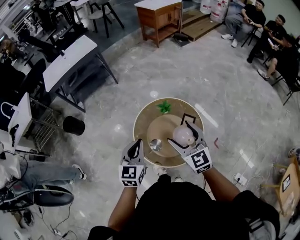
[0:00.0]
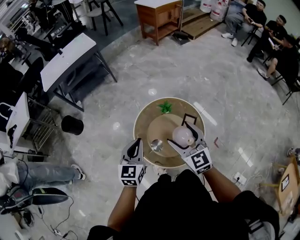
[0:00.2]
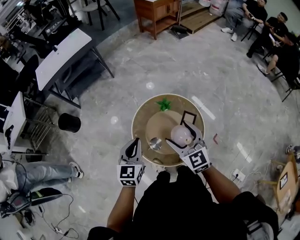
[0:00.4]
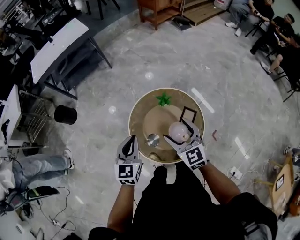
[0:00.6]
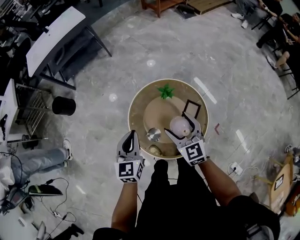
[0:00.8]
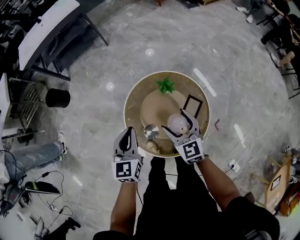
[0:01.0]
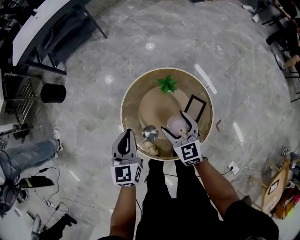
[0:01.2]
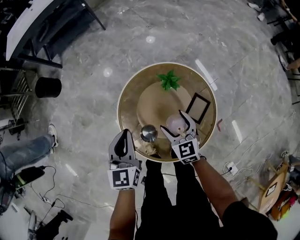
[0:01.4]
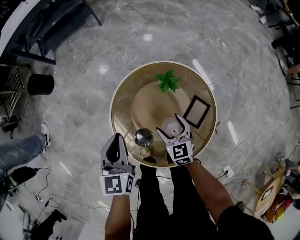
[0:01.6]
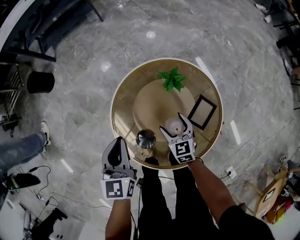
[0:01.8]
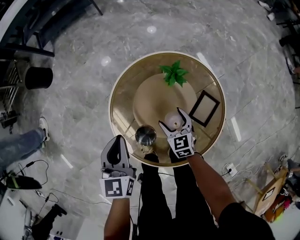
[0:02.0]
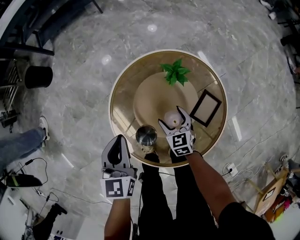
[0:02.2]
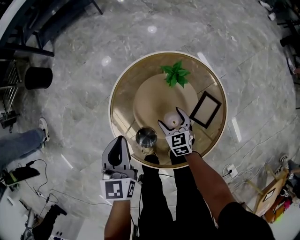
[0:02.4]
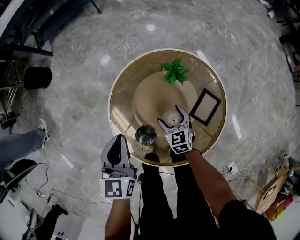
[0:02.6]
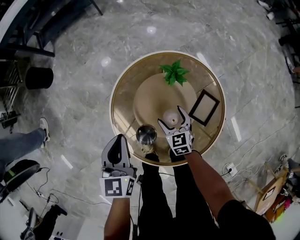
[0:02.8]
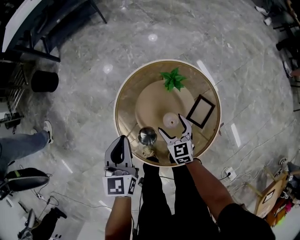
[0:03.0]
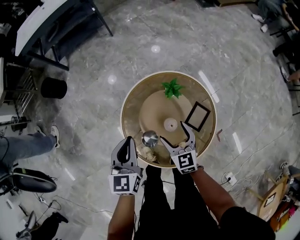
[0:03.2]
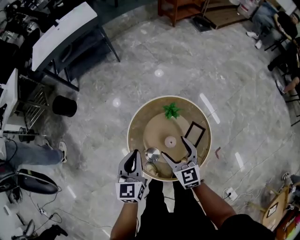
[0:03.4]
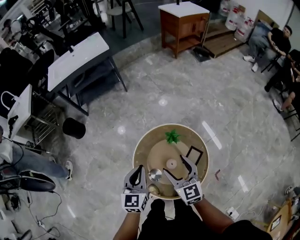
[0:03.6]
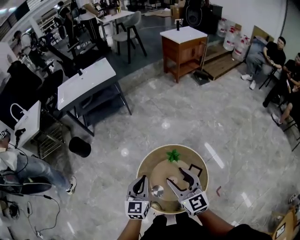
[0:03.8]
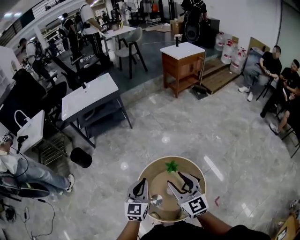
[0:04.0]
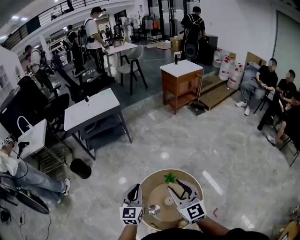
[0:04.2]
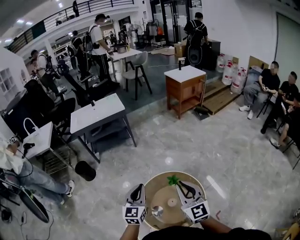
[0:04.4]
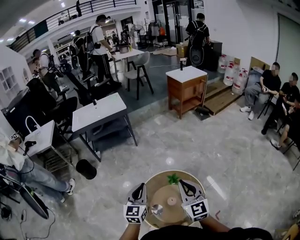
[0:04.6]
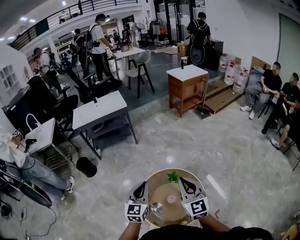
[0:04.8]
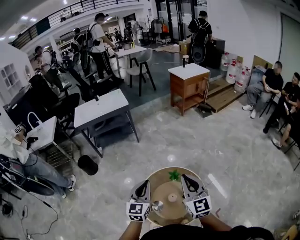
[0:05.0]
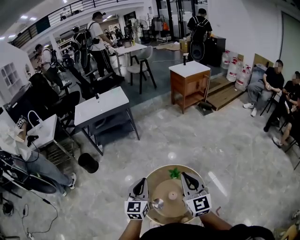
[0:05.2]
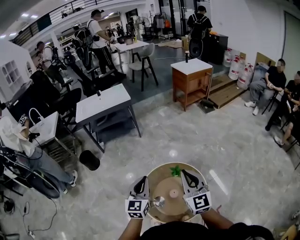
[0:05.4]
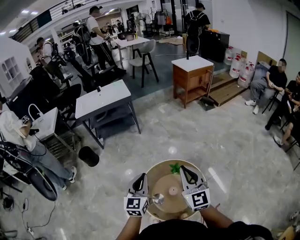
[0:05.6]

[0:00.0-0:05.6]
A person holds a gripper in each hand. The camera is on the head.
0:00.0 to 0:01.4: The left gripper goes some 20 cm downward and forward. The right gripper is displaced downward by roughly 35 cm, and swivels about 20 degrees.
0:01.4 to 0:02.8: The right gripper is displaced downward by some 15 cm; the left gripper shifts approximately 5 cm downward.
0:02.8 to 0:04.2: The left gripper shifts roughly 30 cm upward, and turns by some 20 degrees; the right gripper moves upward, roughly 60 cm, tilts its fingers about 40 degrees upward, and closes its fingers.
0:04.2 to 0:05.6: The right gripper closes.

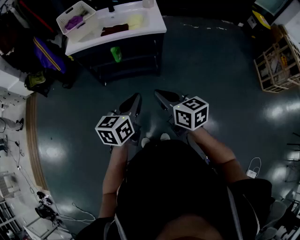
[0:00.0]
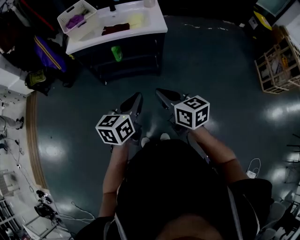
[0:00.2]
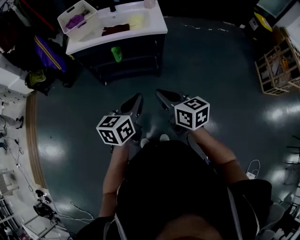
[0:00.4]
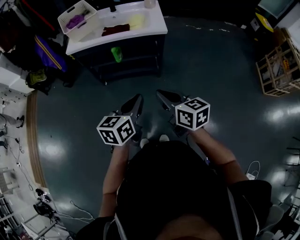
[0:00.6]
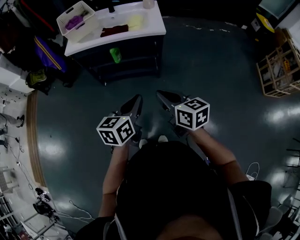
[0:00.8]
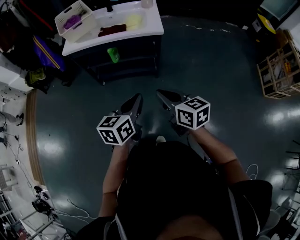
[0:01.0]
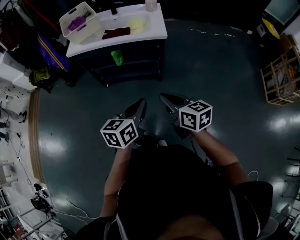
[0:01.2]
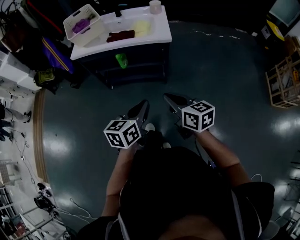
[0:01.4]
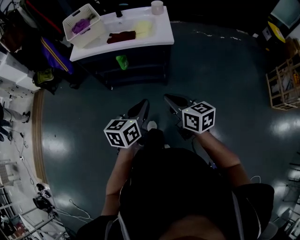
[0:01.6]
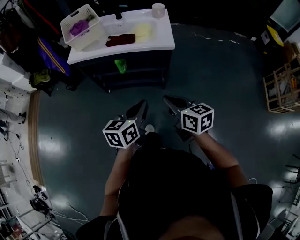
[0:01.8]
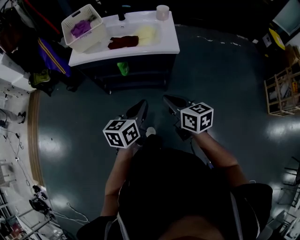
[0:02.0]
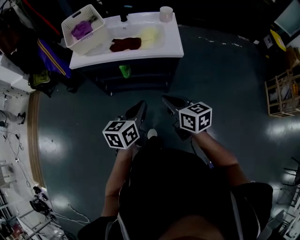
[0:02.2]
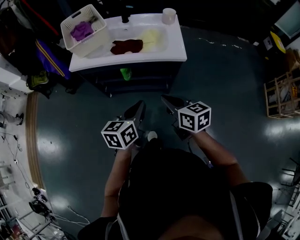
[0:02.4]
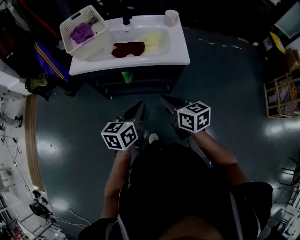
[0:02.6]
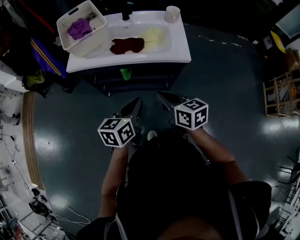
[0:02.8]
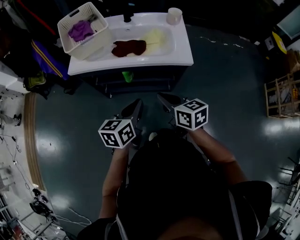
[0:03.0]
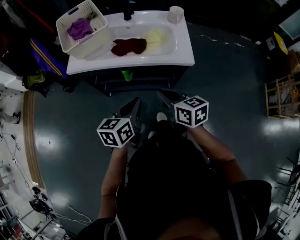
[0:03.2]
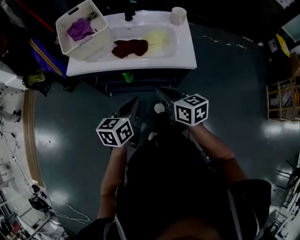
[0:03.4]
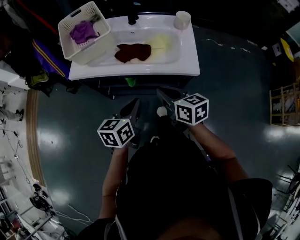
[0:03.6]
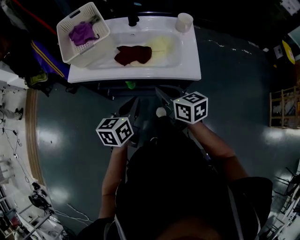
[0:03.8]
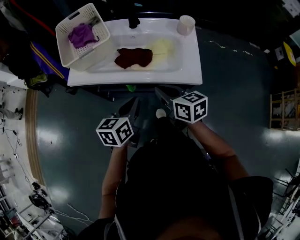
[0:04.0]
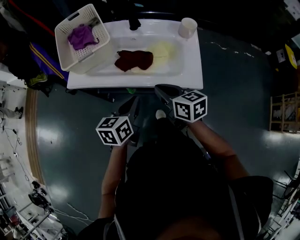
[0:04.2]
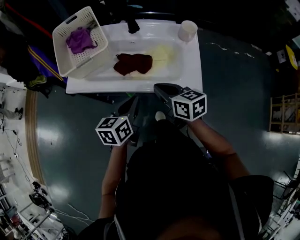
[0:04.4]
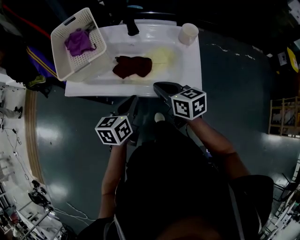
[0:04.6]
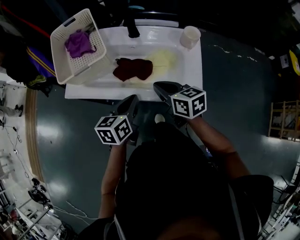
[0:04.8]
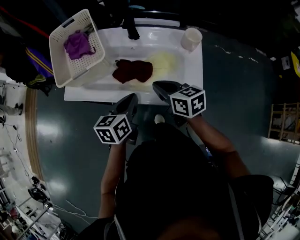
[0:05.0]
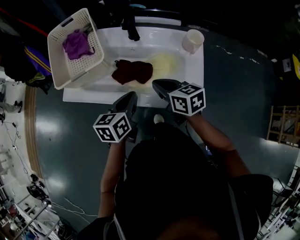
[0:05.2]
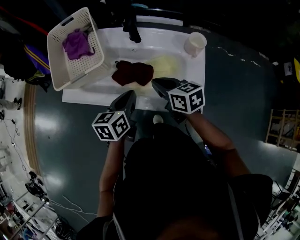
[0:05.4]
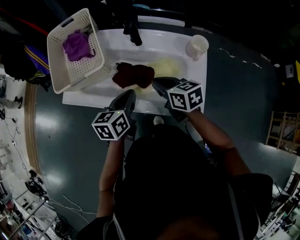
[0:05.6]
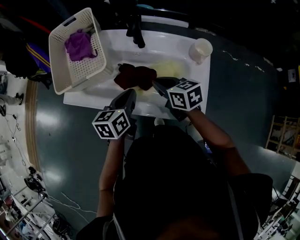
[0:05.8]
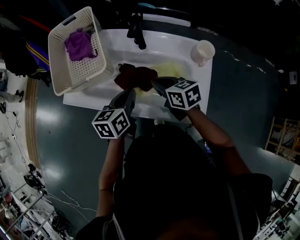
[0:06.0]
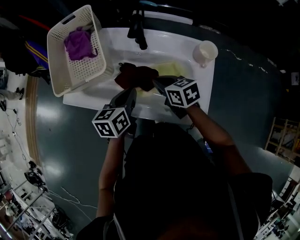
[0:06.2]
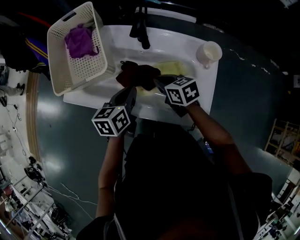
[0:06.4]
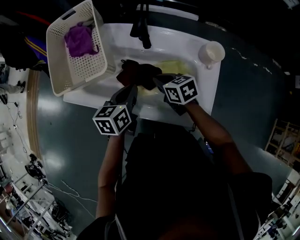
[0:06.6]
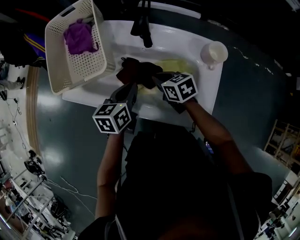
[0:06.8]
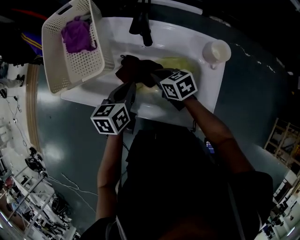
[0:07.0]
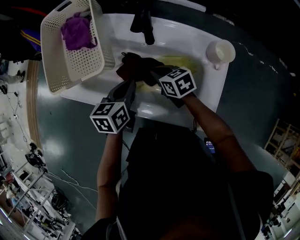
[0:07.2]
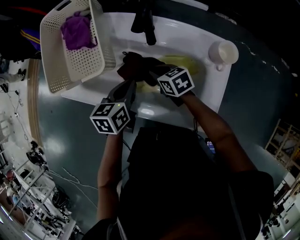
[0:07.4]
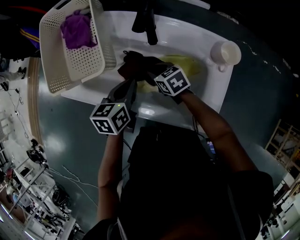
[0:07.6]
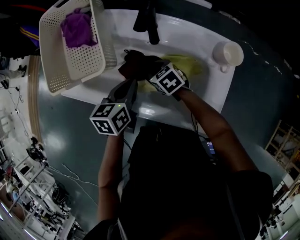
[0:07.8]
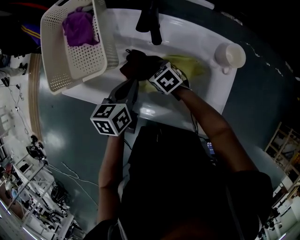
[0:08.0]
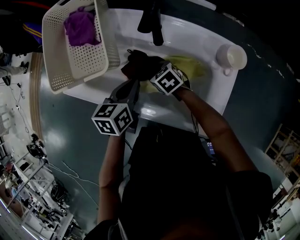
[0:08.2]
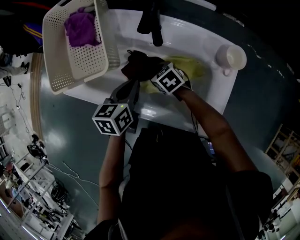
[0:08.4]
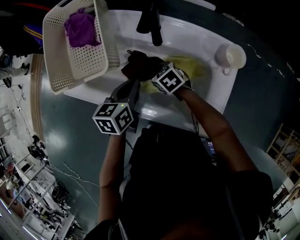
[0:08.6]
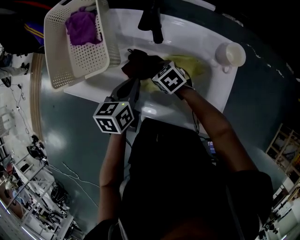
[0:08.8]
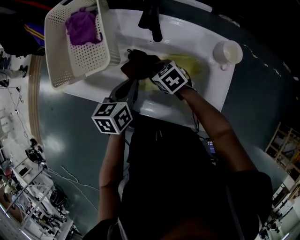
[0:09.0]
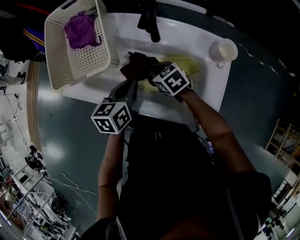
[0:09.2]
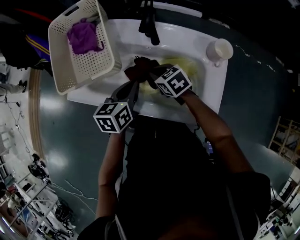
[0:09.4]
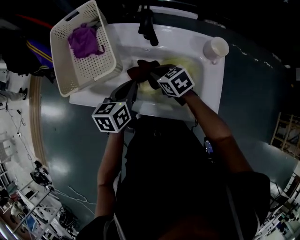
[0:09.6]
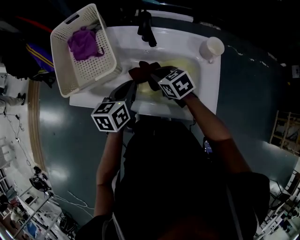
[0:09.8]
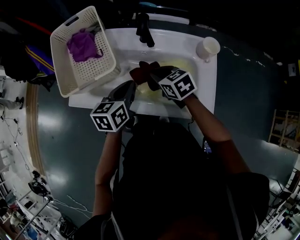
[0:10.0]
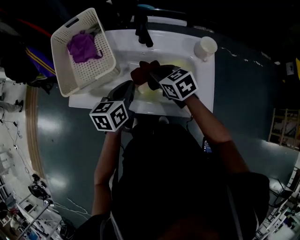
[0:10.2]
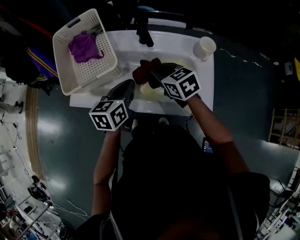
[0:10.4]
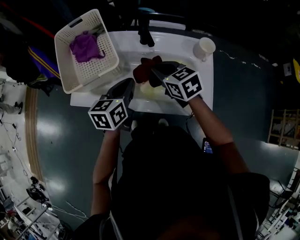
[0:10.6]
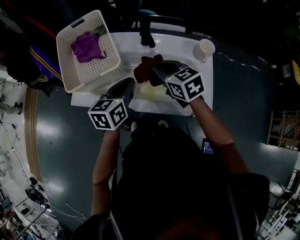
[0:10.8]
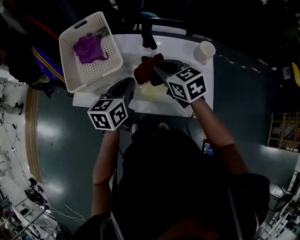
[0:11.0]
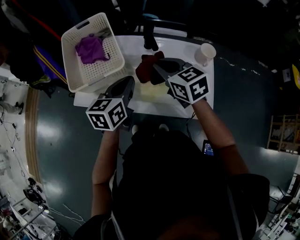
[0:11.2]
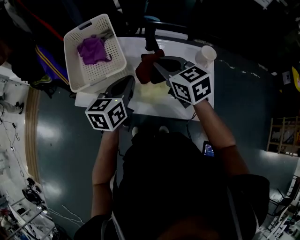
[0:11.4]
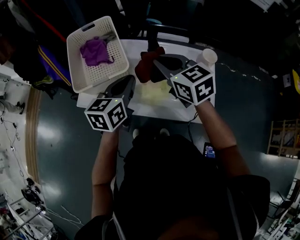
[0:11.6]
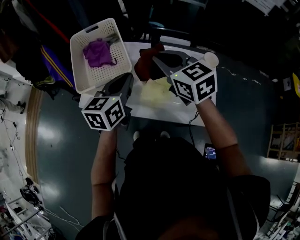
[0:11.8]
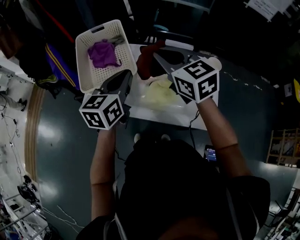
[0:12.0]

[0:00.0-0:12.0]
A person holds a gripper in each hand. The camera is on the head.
0:00.0 to 0:01.6: The grippers both shift forward and to the right by roughly 10 cm.
0:01.6 to 0:03.0: Both grippers move forward and to the left, approximately 20 cm.
0:03.0 to 0:04.4: The grippers both shift forward by some 20 cm.
0:04.4 to 0:06.0: The grippers both shift forward by roughly 15 cm.
0:06.0 to 0:07.6: The right gripper is displaced downward and forward by approximately 15 cm, and opens its fingers; the left gripper changes place by some 5 cm.
0:07.6 to 0:09.0: The right gripper closes.
0:09.0 to 0:10.4: The right gripper heads upward, covering about 15 cm, and swivels some 20 degrees, while the left gripper travels upward by about 5 cm.
0:10.4 to 0:12.0: The left gripper goes roughly 15 cm upward and to the left. Meanwhile the right gripper moves upward, about 20 cm, and changes its angle by approximately 20 degrees.

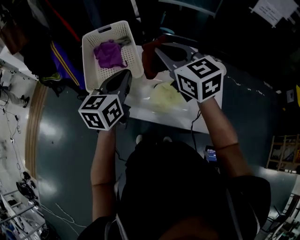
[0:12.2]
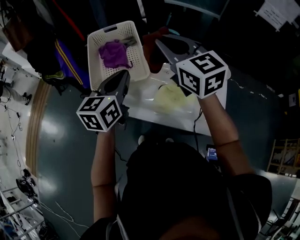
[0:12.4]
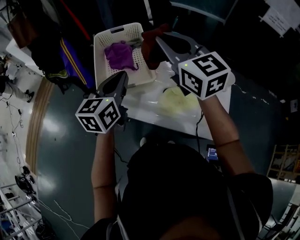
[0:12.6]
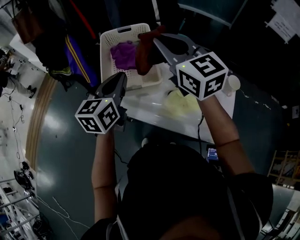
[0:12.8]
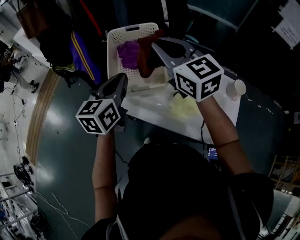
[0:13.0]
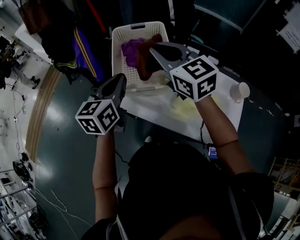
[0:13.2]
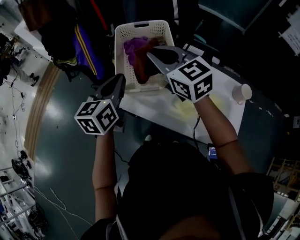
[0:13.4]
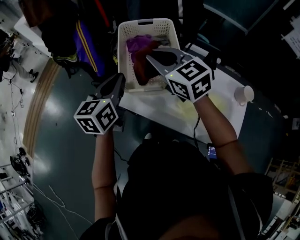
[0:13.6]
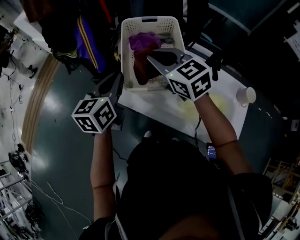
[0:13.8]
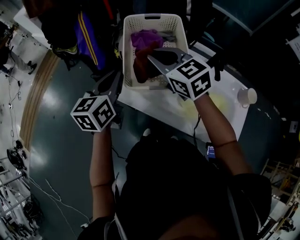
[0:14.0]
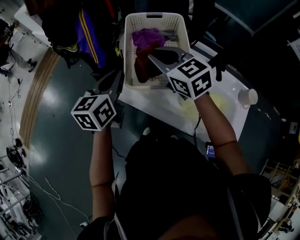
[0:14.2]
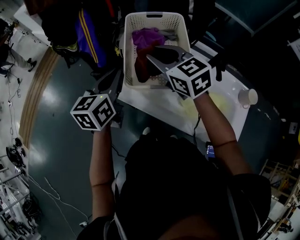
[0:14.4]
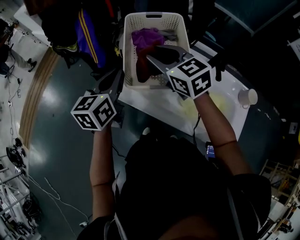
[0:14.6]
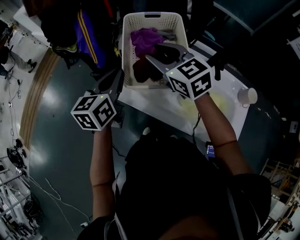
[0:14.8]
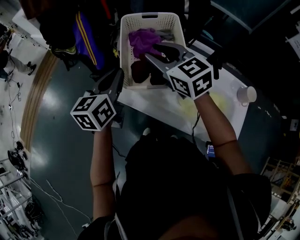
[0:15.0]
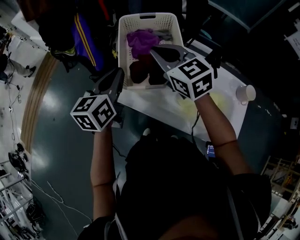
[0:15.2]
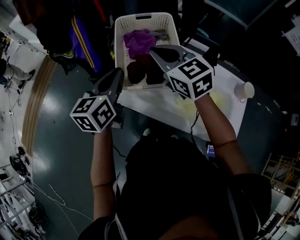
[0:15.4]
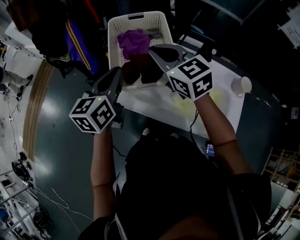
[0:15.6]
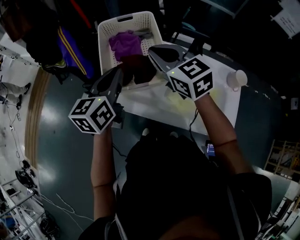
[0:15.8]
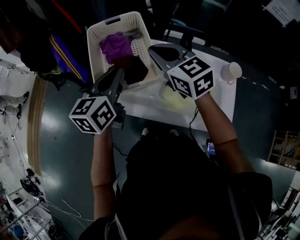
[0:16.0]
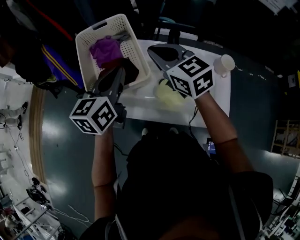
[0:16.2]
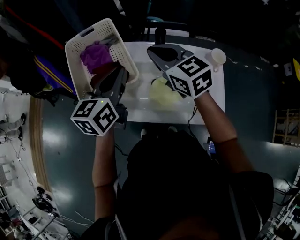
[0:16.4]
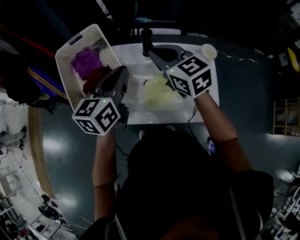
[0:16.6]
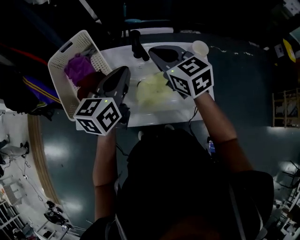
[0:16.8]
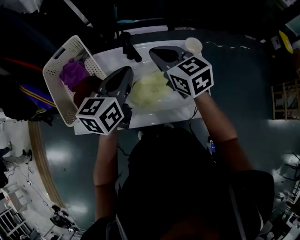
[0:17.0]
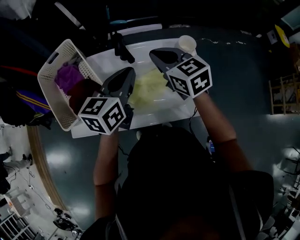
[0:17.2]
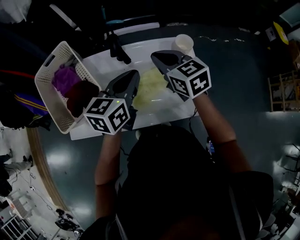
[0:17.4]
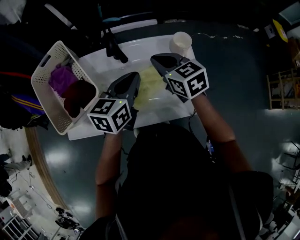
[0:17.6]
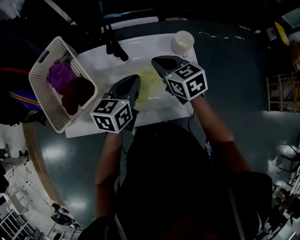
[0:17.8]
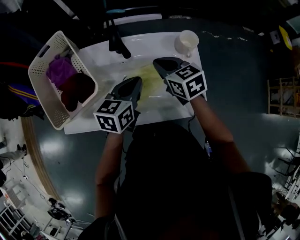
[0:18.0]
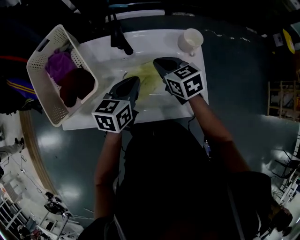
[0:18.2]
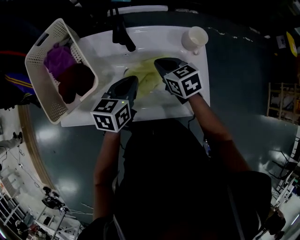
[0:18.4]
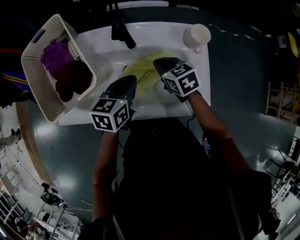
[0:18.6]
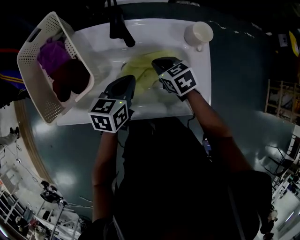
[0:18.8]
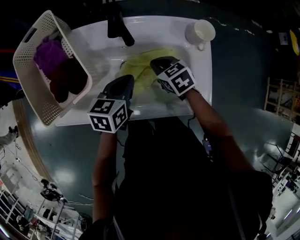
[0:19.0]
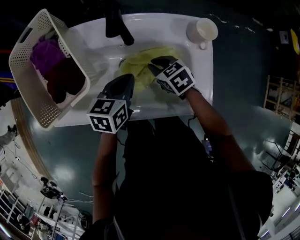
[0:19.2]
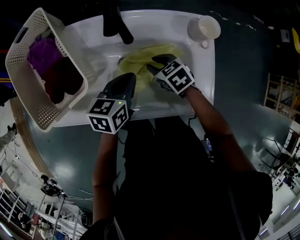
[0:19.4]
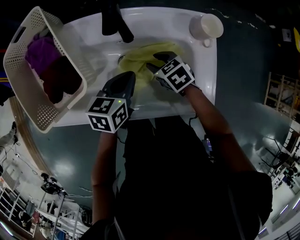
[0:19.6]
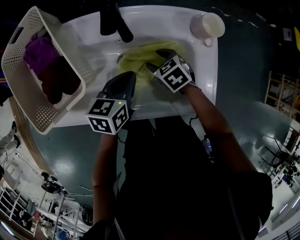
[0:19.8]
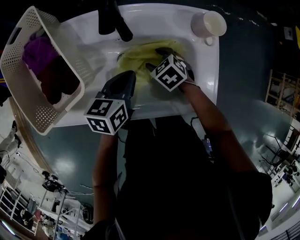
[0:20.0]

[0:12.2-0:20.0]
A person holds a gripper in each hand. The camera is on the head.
0:12.2 to 0:13.8: The left gripper shifts roughly 20 cm to the left. Meanwhile the right gripper is displaced to the left and forward by about 20 cm, and changes its angle by approximately 20 degrees.
0:13.8 to 0:15.4: The right gripper opens and closes again.
0:15.4 to 0:16.8: The right gripper shifts by roughly 30 cm, and rotates about 30 degrees; the left gripper moves approximately 30 cm, and rotates roughly 30 degrees.
0:16.8 to 0:18.4: The left gripper shifts some 15 cm downward and to the right. Meanwhile the right gripper is displaced downward by some 20 cm, and turns by about 20 degrees.
0:18.4 to 0:20.0: The right gripper heads downward, covering roughly 15 cm, changes its angle by roughly 30 degrees, and opens its fingers; the left gripper moves downward, approximately 5 cm.
